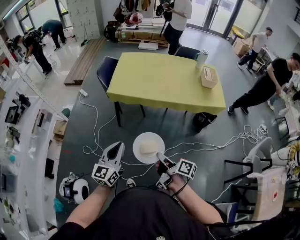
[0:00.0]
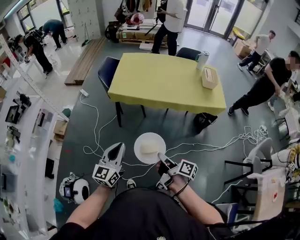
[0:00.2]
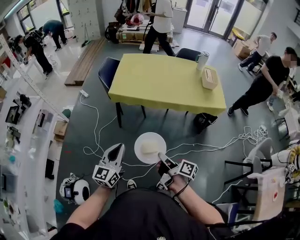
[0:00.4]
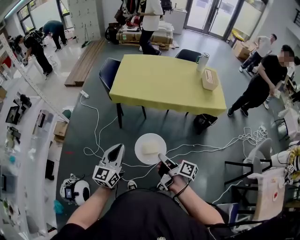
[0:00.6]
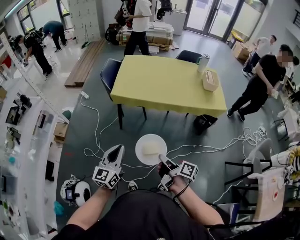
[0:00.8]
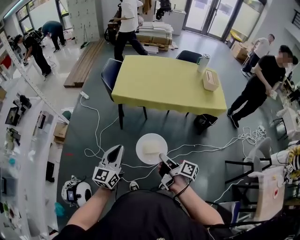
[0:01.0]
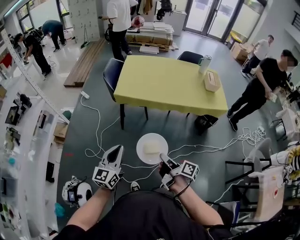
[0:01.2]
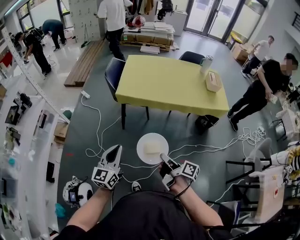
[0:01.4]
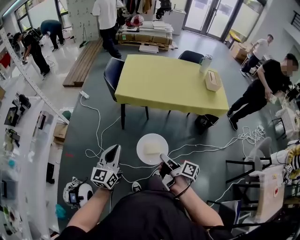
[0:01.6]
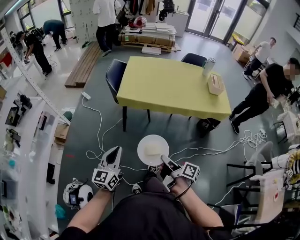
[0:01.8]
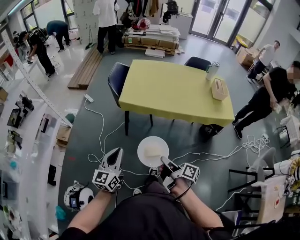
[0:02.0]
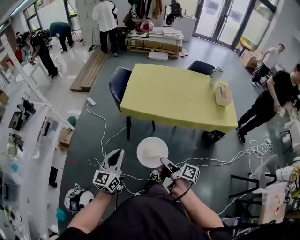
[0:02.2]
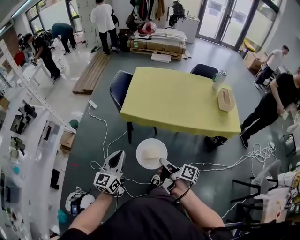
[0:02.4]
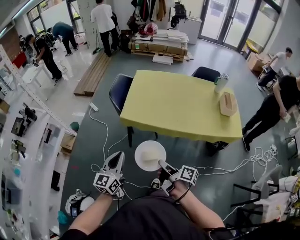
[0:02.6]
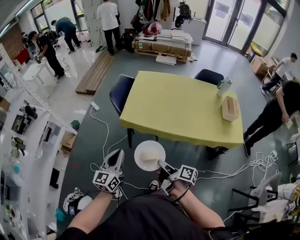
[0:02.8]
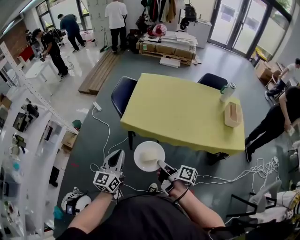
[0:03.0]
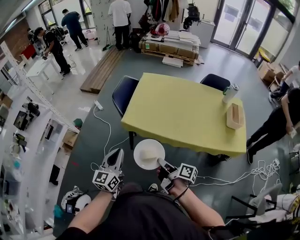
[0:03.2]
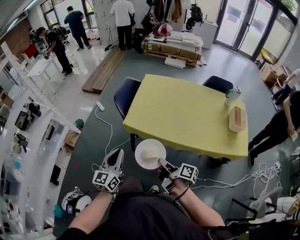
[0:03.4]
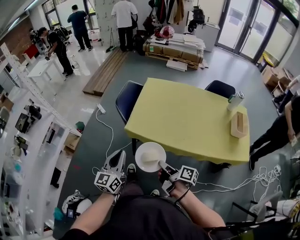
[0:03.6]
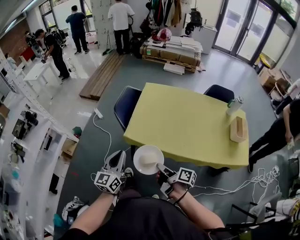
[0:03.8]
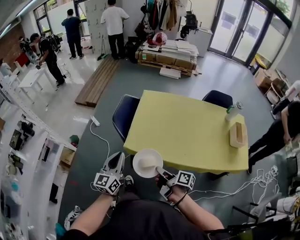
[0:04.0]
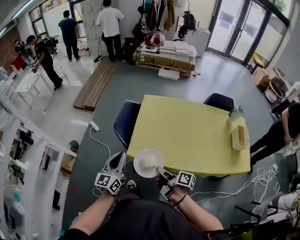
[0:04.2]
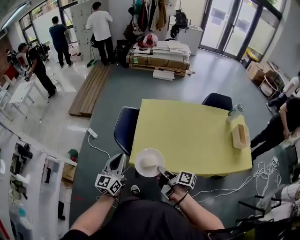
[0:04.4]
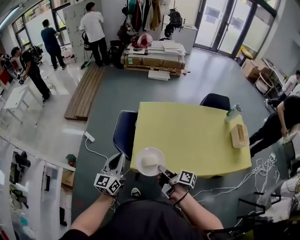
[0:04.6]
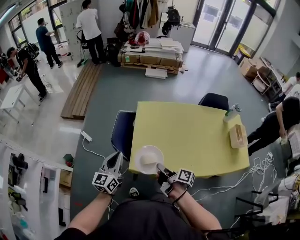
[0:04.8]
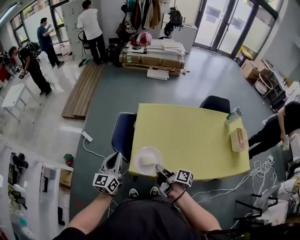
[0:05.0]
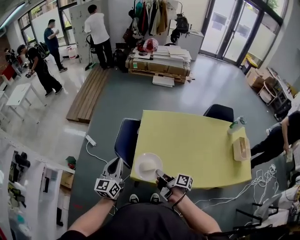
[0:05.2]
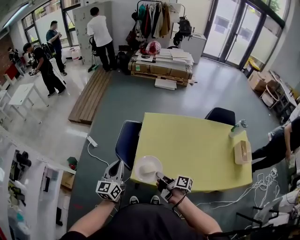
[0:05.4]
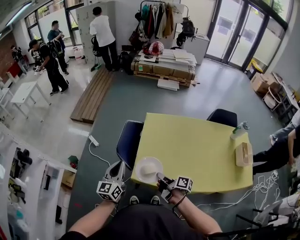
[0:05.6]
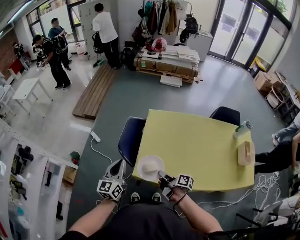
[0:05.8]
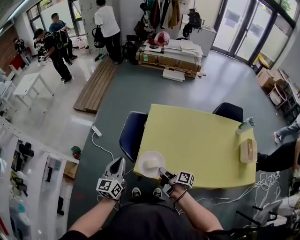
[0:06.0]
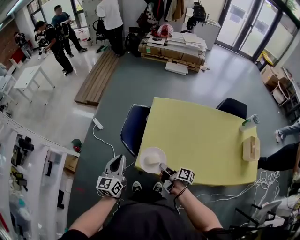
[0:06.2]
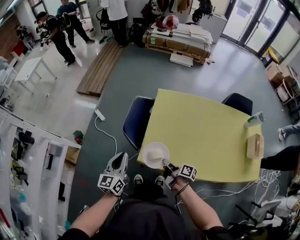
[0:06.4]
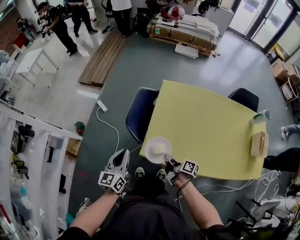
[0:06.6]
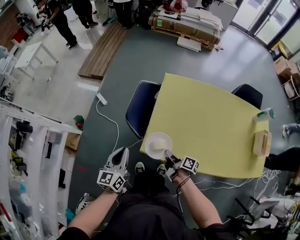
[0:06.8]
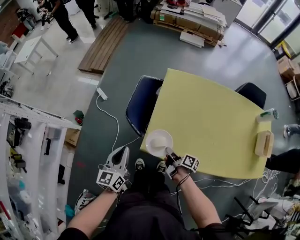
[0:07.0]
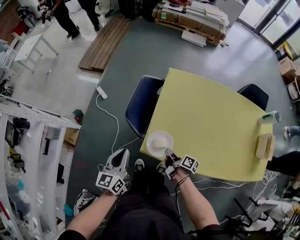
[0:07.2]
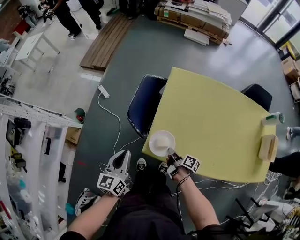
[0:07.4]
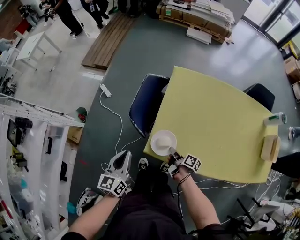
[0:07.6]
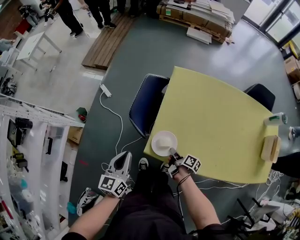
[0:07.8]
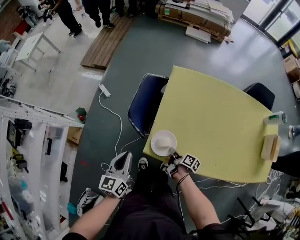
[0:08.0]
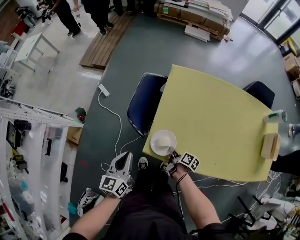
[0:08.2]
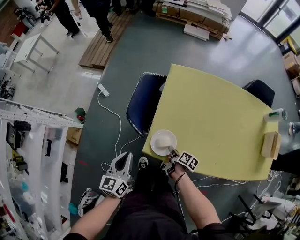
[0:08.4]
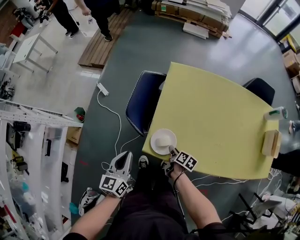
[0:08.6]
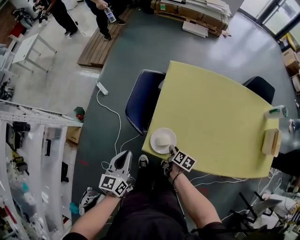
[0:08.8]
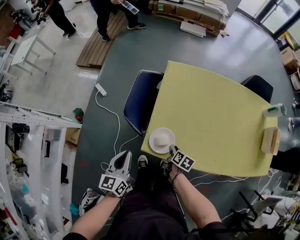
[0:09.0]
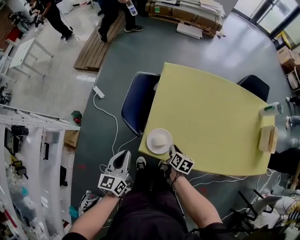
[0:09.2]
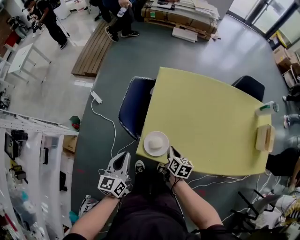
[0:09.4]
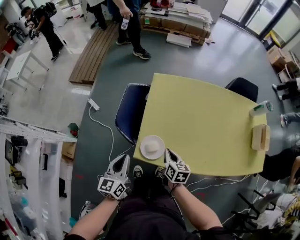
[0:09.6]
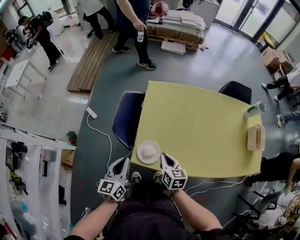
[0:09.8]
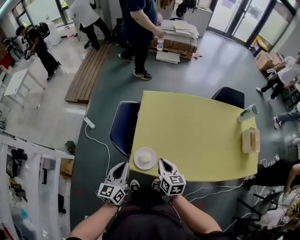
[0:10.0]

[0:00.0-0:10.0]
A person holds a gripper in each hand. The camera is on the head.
0:00.0 to 0:01.4: The two grippers go about 10 cm to the left.
0:01.4 to 0:02.8: The two grippers go some 25 cm forward.
0:02.8 to 0:04.2: The two grippers go some 30 cm forward.
0:04.2 to 0:05.8: The grippers both shift forward by approximately 15 cm.
0:05.8 to 0:07.2: The left gripper shifts approximately 10 cm downward. Meanwhile the right gripper goes approximately 20 cm downward.
0:07.2 to 0:08.6: The right gripper is displaced downward by roughly 5 cm, and turns by roughly 30 degrees.
0:08.6 to 0:10.0: The left gripper travels to the right and upward by approximately 10 cm, while the right gripper goes approximately 25 cm upward, rolls counterclockwise, seen from behind, by about 40 degrees, and closes.

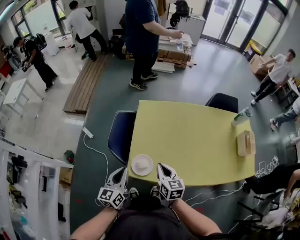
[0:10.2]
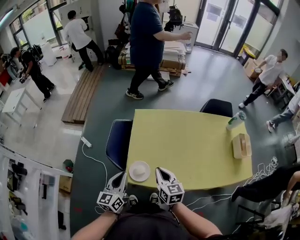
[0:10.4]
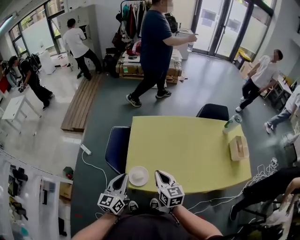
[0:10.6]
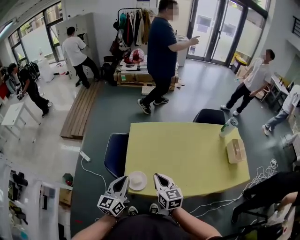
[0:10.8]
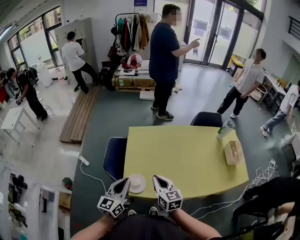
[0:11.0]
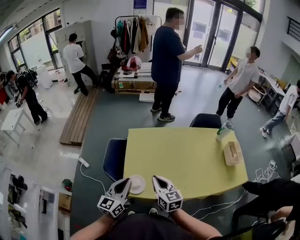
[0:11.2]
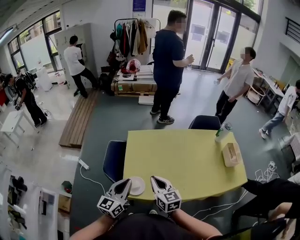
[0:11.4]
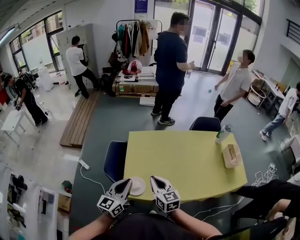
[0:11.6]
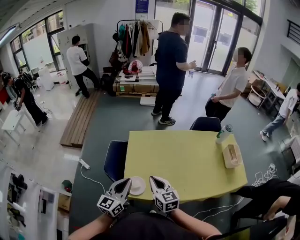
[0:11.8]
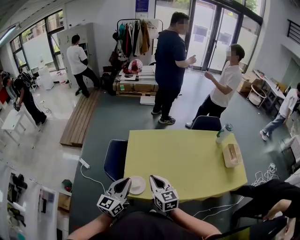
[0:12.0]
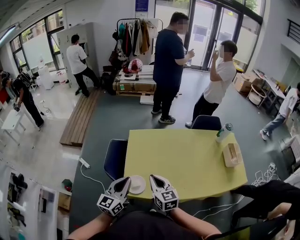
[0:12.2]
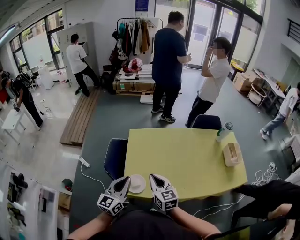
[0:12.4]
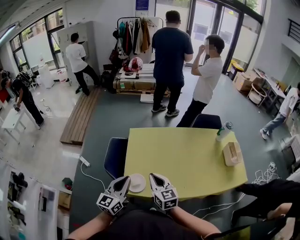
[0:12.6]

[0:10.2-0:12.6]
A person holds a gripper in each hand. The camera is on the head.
0:10.2 to 0:11.4: The right gripper is displaced upward by about 10 cm. The left gripper heads upward and to the right, covering approximately 10 cm.
0:11.4 to 0:12.6: Neither gripper changes place.

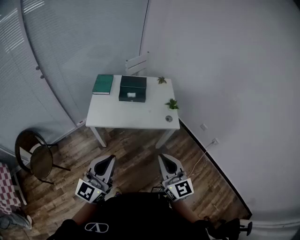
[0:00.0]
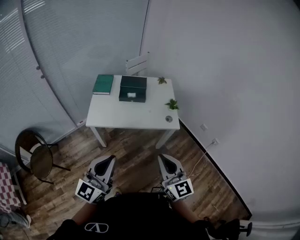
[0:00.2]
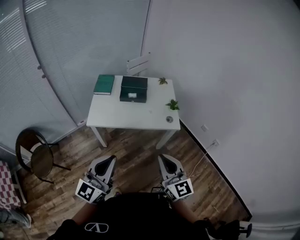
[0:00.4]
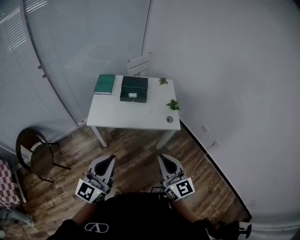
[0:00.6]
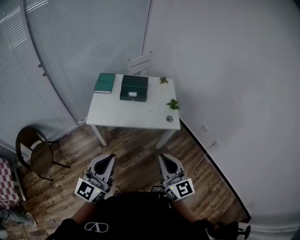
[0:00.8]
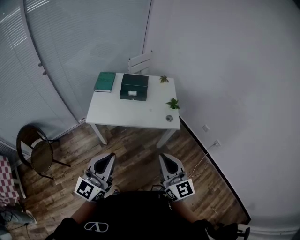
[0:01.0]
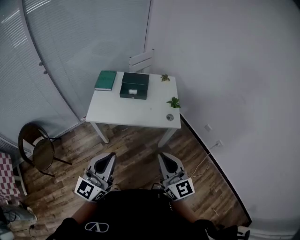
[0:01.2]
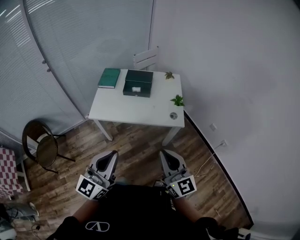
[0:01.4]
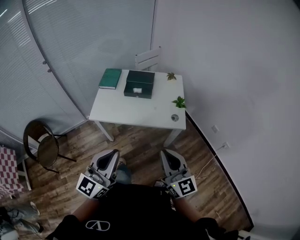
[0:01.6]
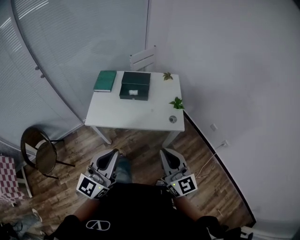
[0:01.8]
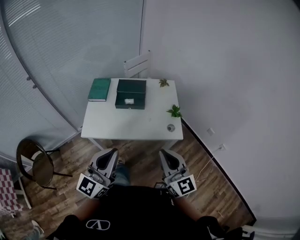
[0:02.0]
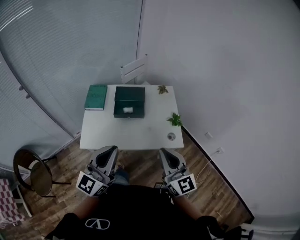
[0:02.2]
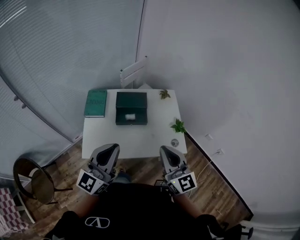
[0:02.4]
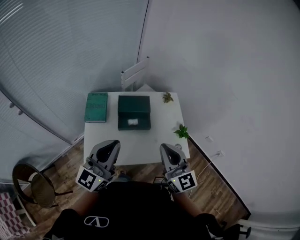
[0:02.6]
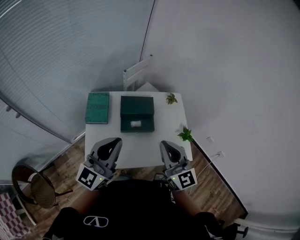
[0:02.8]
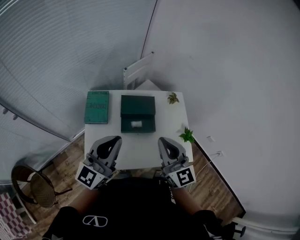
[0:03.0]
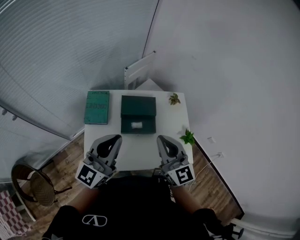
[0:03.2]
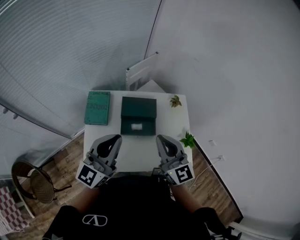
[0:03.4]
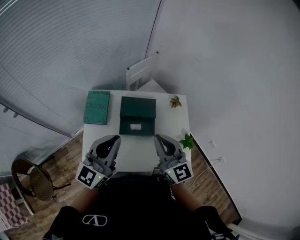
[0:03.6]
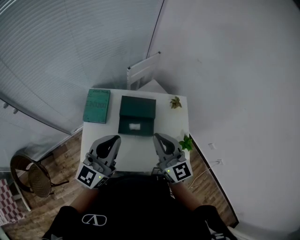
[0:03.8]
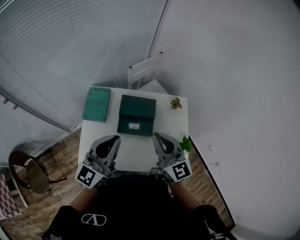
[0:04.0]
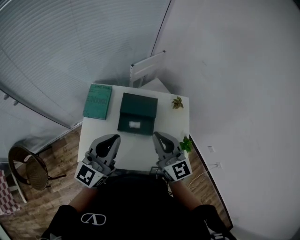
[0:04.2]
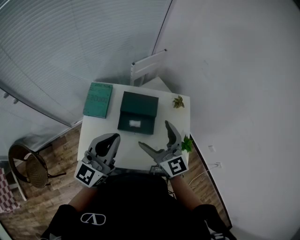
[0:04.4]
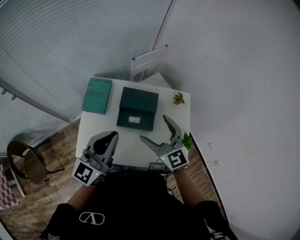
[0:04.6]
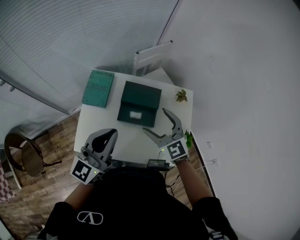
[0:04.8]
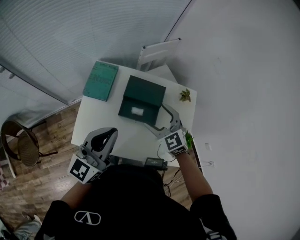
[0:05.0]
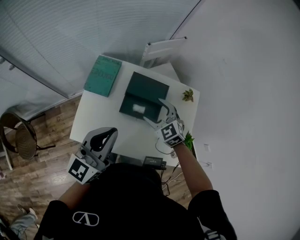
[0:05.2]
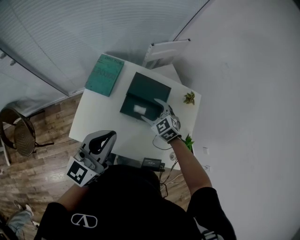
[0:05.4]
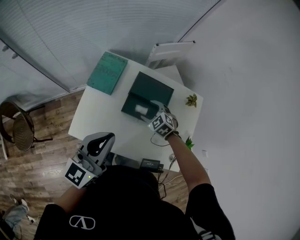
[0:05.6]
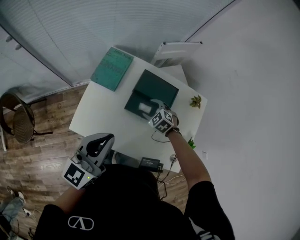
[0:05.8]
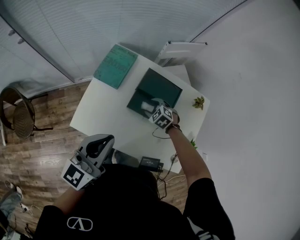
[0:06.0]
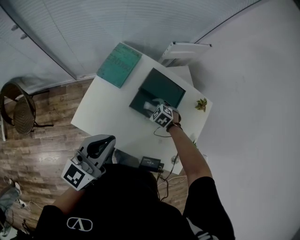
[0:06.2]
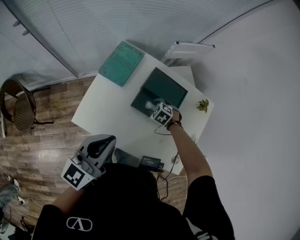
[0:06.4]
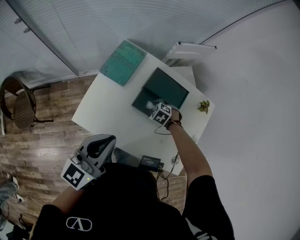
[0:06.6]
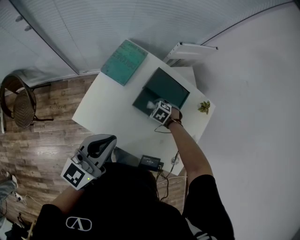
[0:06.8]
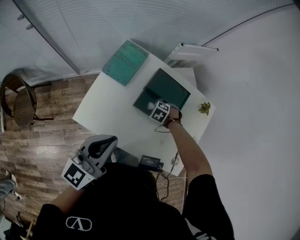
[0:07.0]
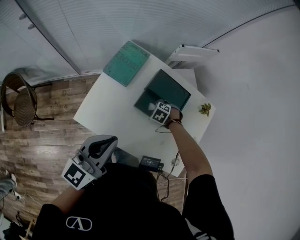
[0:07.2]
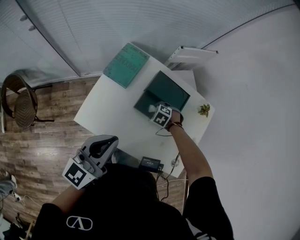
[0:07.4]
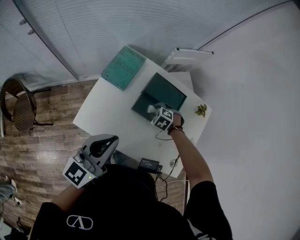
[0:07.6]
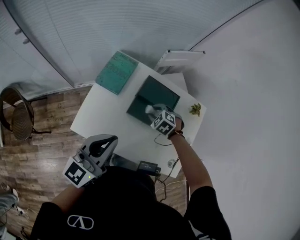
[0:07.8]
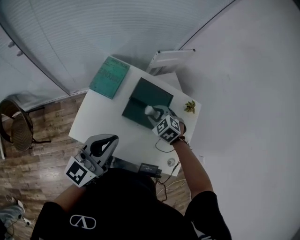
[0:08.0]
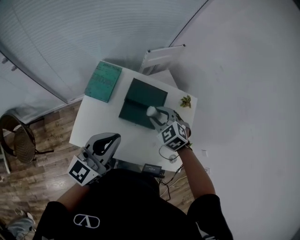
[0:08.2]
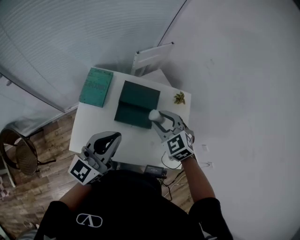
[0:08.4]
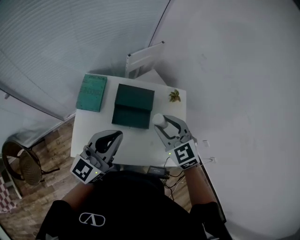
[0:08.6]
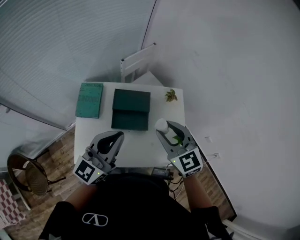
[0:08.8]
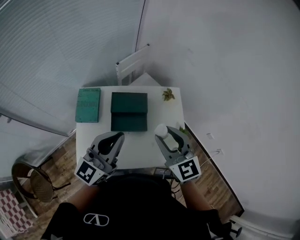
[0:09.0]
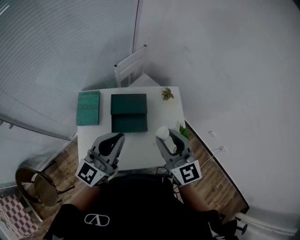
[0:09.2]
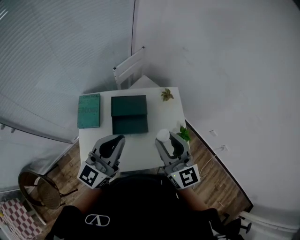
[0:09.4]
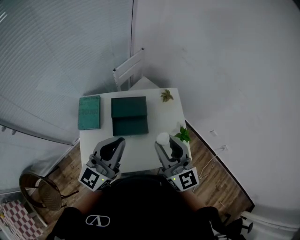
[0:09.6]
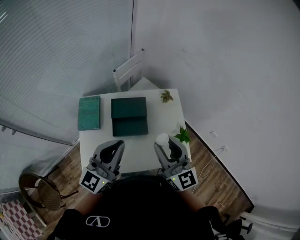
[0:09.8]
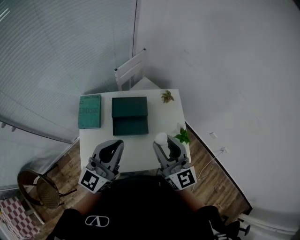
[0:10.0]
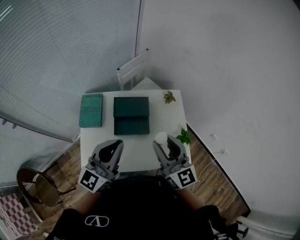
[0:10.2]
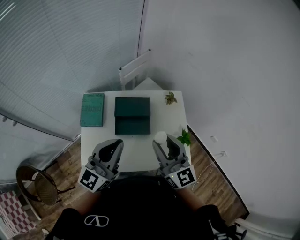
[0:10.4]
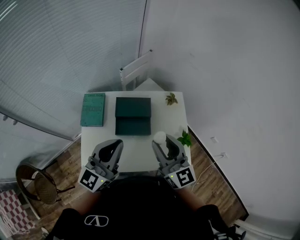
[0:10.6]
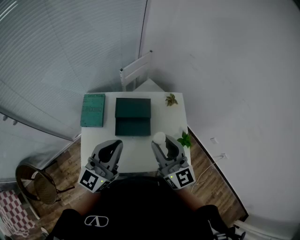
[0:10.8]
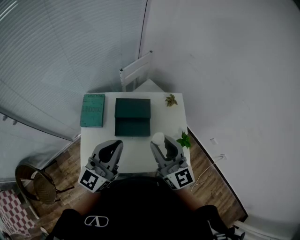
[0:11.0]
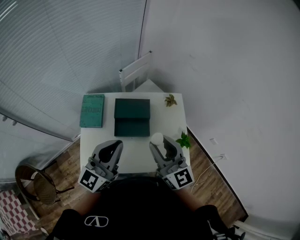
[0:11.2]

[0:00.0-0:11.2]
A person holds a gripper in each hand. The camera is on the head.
0:00.0 to 0:01.6: The grippers both shift to the right by some 5 cm.
0:01.6 to 0:03.2: Both grippers are carried forward and to the left, about 50 cm.
0:03.2 to 0:04.8: The right gripper is displaced downward and forward by roughly 15 cm, turns by roughly 30 degrees, and opens.
0:04.8 to 0:06.4: The left gripper goes some 10 cm downward. Meanwhile the right gripper heads downward, covering roughly 35 cm, points its fingers roughly 50 degrees further downward, and closes its fingers.
0:06.4 to 0:08.0: The right gripper travels upward by approximately 15 cm.
0:08.0 to 0:09.6: The left gripper changes place by approximately 15 cm, and turns by about 20 degrees. Meanwhile the right gripper heads upward, covering about 30 cm, and tilts its fingers about 60 degrees upward.
0:09.6 to 0:11.2: The grippers make only small movements.
